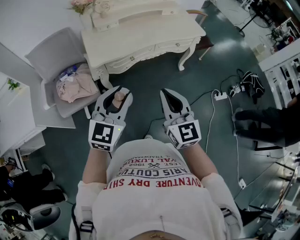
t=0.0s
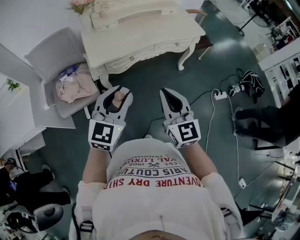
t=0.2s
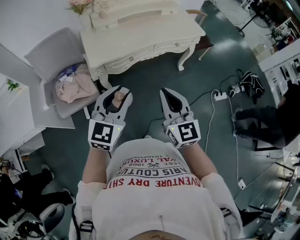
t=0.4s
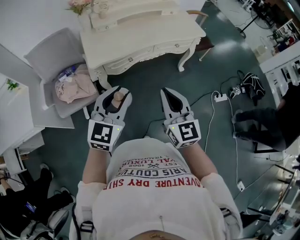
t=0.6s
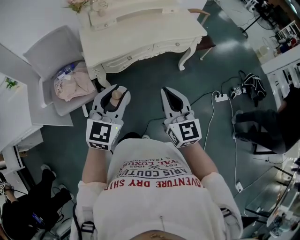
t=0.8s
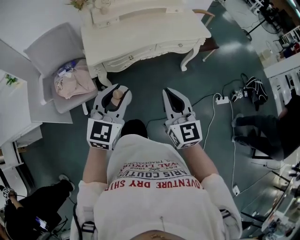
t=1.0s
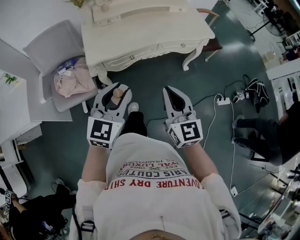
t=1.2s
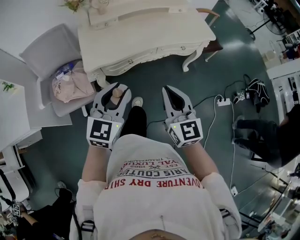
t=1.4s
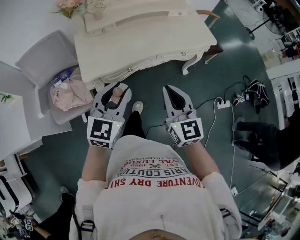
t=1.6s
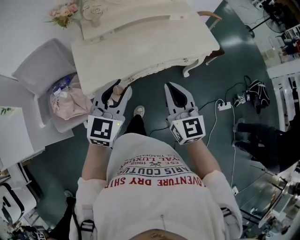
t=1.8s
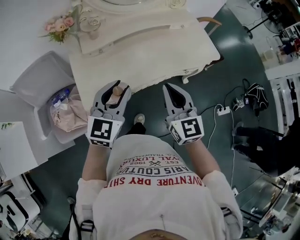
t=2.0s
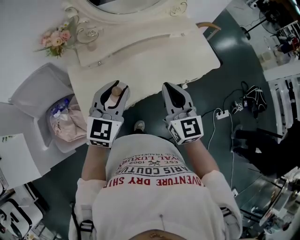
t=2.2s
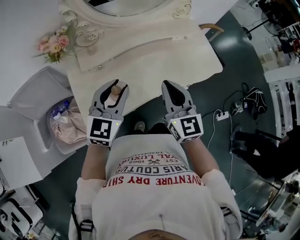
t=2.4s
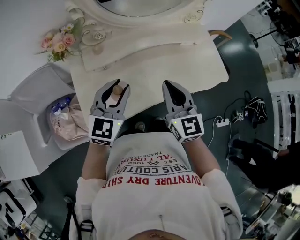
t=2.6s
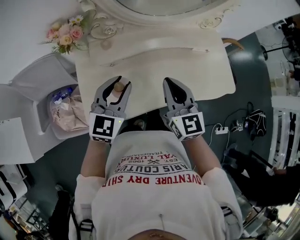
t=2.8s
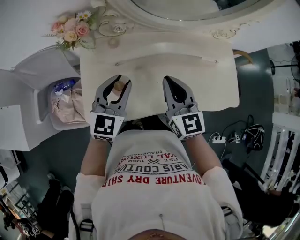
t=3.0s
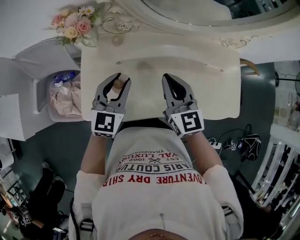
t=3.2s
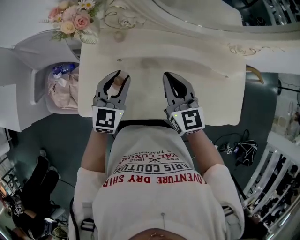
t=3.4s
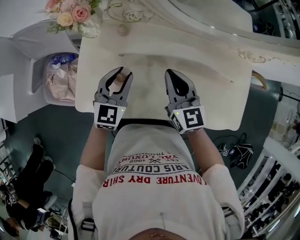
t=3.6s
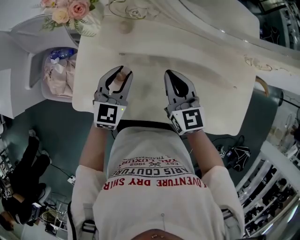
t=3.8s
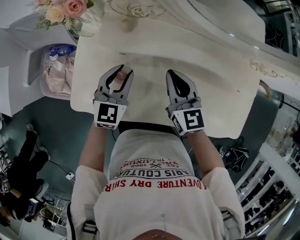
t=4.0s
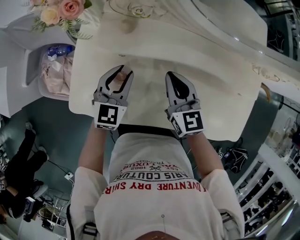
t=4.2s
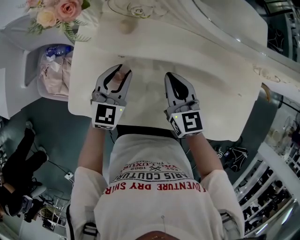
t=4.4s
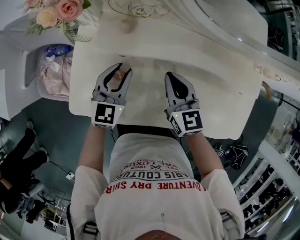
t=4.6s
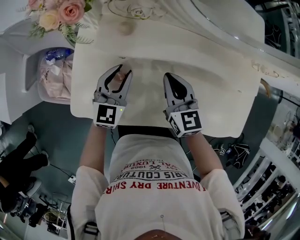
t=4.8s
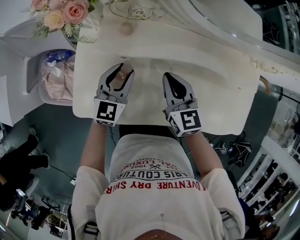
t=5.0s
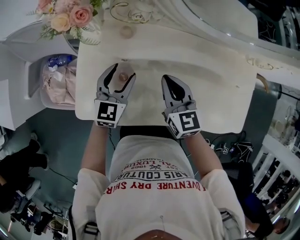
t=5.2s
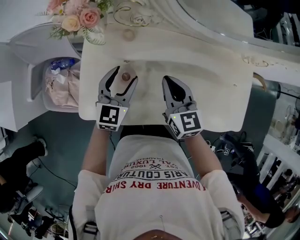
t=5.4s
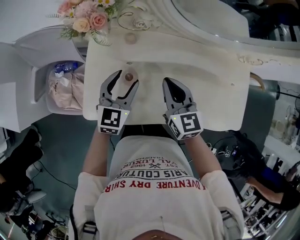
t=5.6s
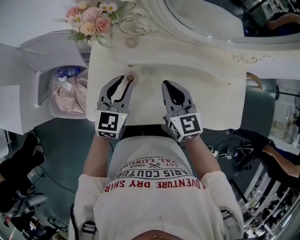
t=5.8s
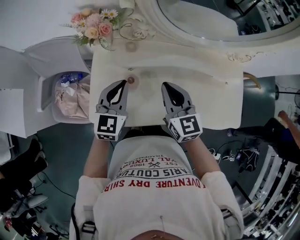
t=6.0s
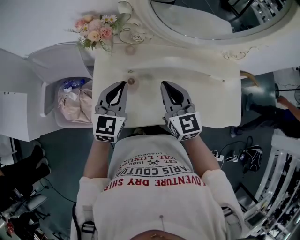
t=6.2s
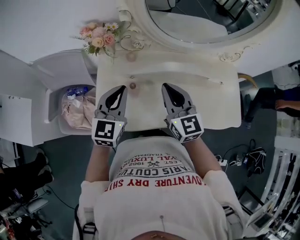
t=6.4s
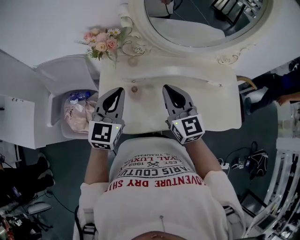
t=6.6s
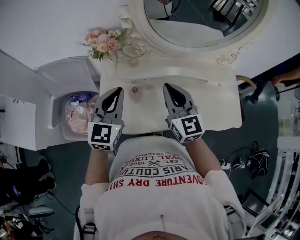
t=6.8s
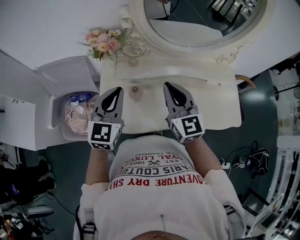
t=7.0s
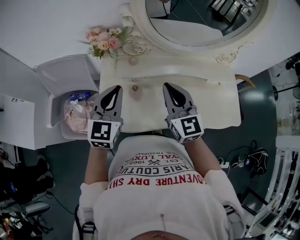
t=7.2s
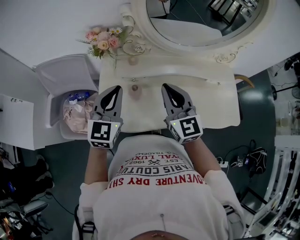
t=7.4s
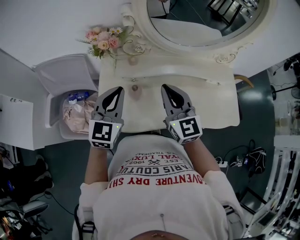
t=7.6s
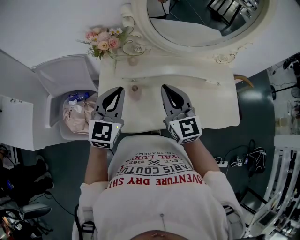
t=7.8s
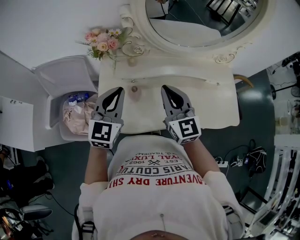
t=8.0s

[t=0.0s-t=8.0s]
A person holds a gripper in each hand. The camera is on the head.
t=0.0s to t=1.6s: The grippers both shift forward by approximately 20 cm.
t=1.6s to t=3.2s: The pair of grippers is taken some 40 cm. The right gripper rotates roughly 20 degrees. Meanwhile the left gripper swivels roughly 20 degrees.
t=3.2s to t=4.8s: The right gripper is displaced downward and forward by roughly 15 cm; the left gripper goes some 15 cm downward.
t=4.8s to t=6.4s: Both grippers move upward and backward, roughly 20 cm. The left gripper closes its fingers.
t=6.4s to t=8.0s: There are only small adjustments of the grippers.

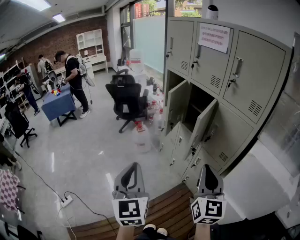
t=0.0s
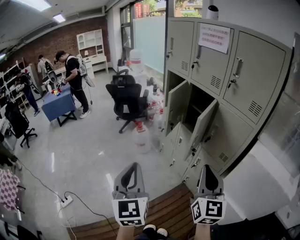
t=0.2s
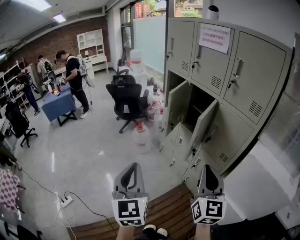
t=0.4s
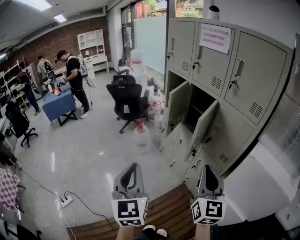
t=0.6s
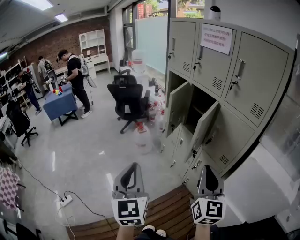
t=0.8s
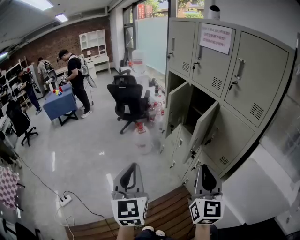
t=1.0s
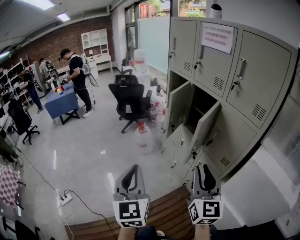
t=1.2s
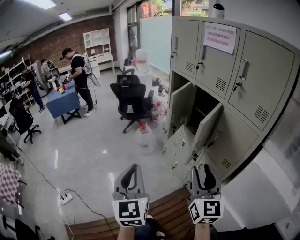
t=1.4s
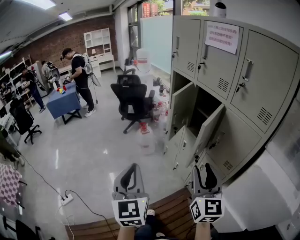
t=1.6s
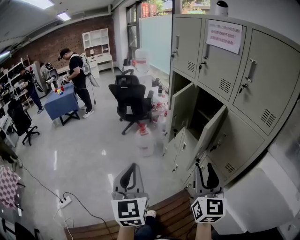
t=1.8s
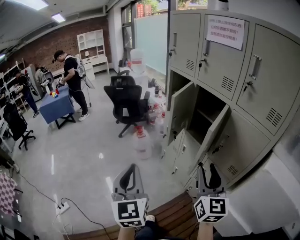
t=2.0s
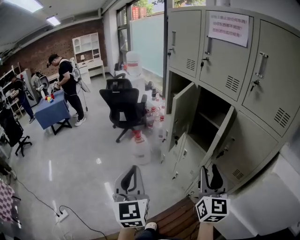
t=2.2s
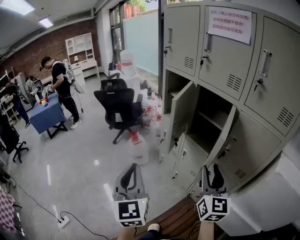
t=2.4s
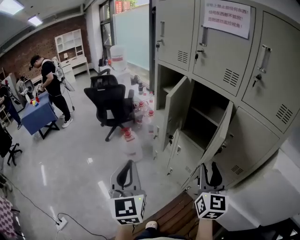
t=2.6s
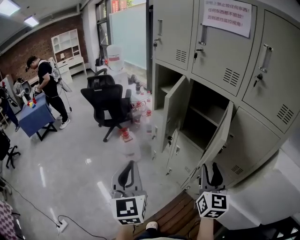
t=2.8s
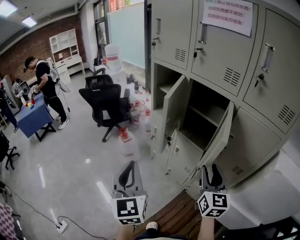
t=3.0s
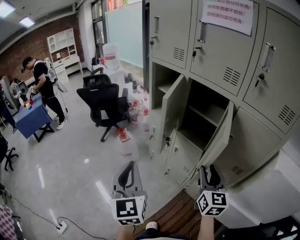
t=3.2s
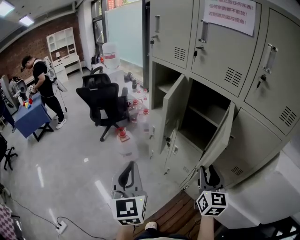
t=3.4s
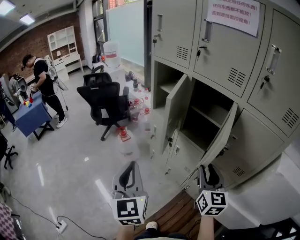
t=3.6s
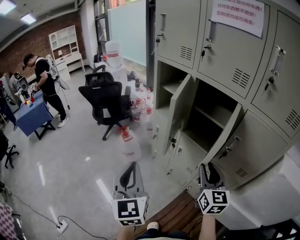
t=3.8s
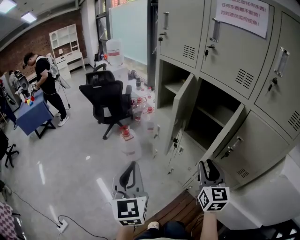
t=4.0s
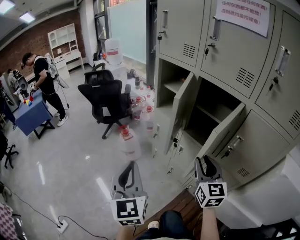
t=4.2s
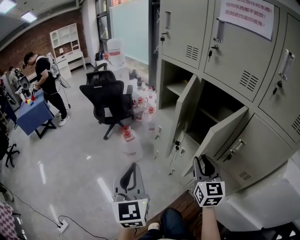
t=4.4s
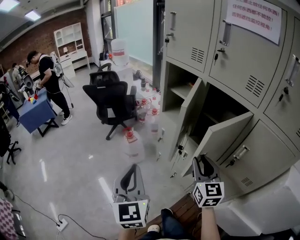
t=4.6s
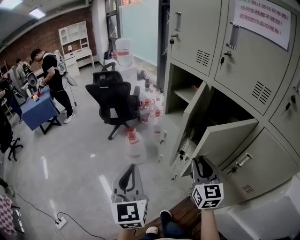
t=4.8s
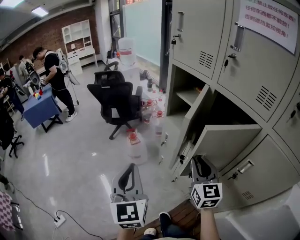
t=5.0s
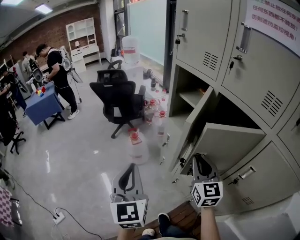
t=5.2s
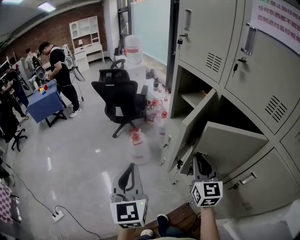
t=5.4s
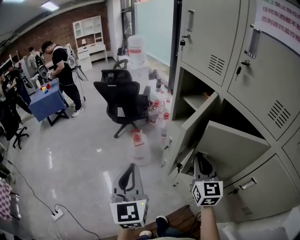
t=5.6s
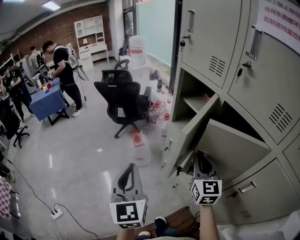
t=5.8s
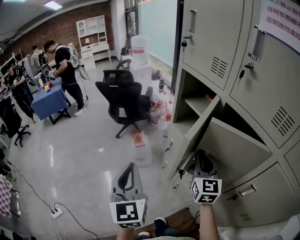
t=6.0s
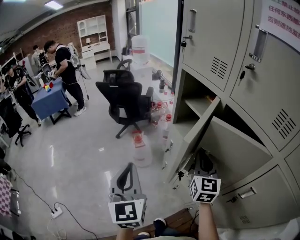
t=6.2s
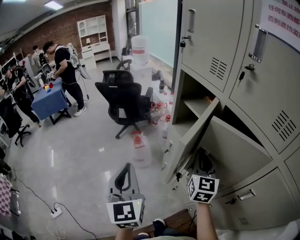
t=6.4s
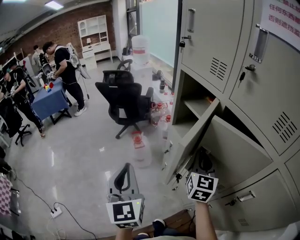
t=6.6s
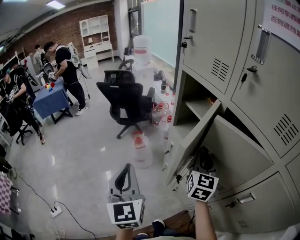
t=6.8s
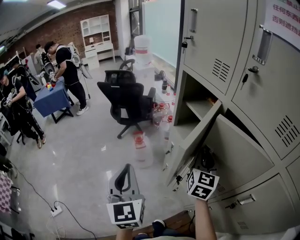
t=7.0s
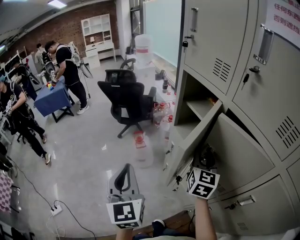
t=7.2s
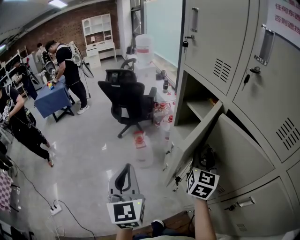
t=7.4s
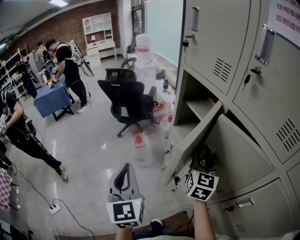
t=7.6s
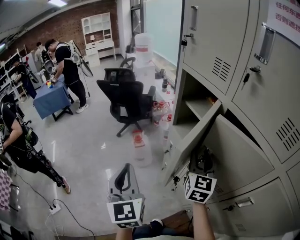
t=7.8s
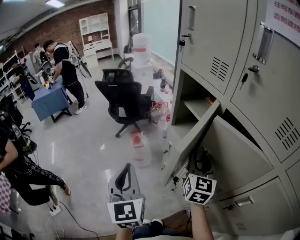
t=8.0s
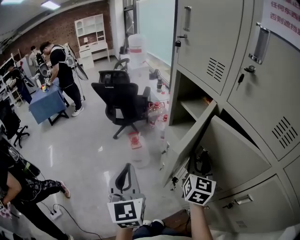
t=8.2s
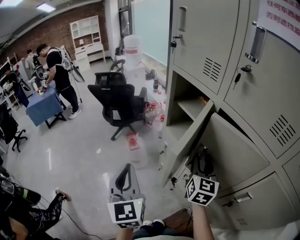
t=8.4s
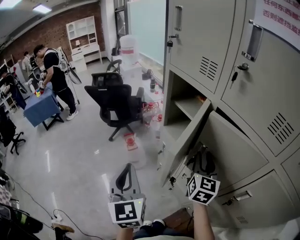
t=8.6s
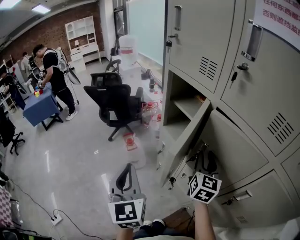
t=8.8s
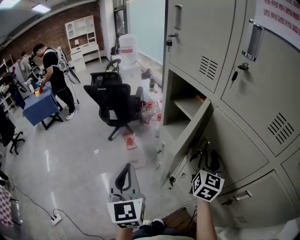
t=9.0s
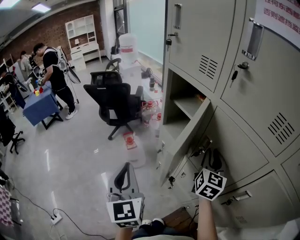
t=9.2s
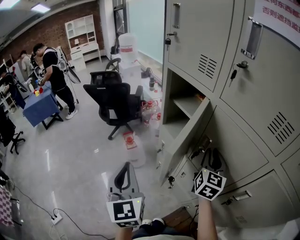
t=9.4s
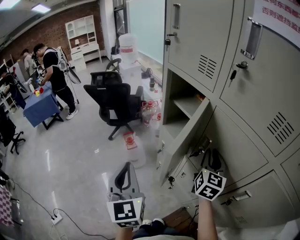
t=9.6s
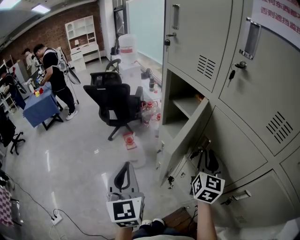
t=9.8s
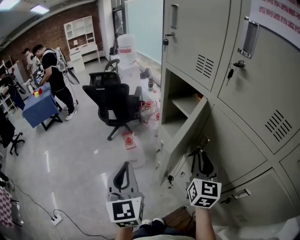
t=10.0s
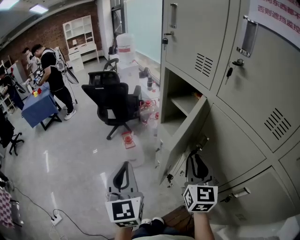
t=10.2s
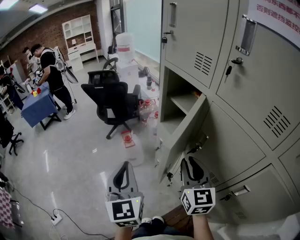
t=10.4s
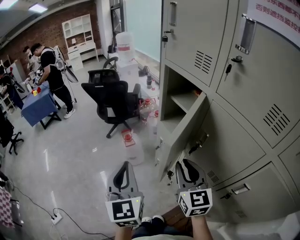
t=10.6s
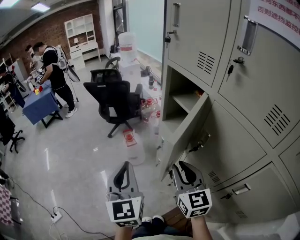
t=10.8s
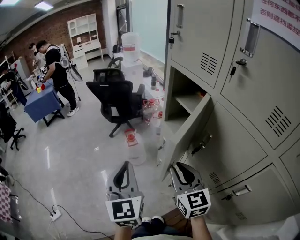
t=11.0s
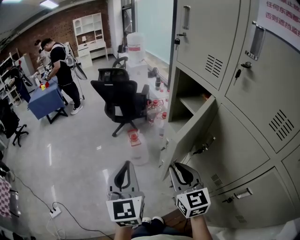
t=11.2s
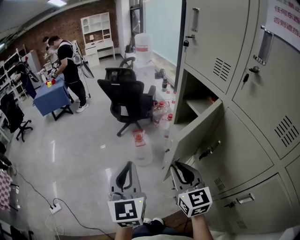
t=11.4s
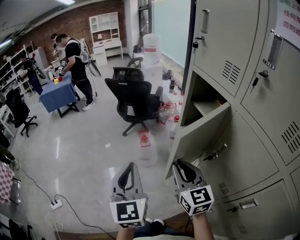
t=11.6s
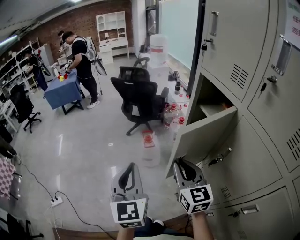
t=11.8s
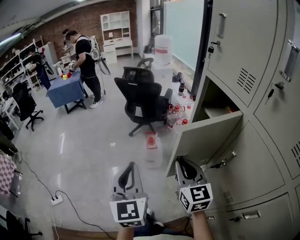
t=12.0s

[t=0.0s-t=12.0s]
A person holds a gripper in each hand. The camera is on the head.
t=0.0s to t=1.6s: The right gripper travels forward by about 5 cm, and opens its fingers.
t=1.6s to t=3.0s: The right gripper goes approximately 25 cm forward and downward; the left gripper is displaced forward by approximately 25 cm.
t=3.0s to t=4.4s: The left gripper changes place by approximately 5 cm. The right gripper heads forward and to the left, covering some 10 cm.
t=4.4s to t=6.0s: The right gripper shifts about 20 cm forward, while the left gripper shifts about 10 cm forward.
t=6.0s to t=7.6s: The right gripper heads forward, covering approximately 5 cm, and opens up.
t=7.6s to t=9.0s: The right gripper moves to the right, about 5 cm.
t=9.0s to t=10.4s: The right gripper heads to the left and backward, covering roughly 10 cm, and turns by some 20 degrees.
t=10.4s to t=12.0s: The left gripper moves to the left, about 5 cm. The right gripper goes approximately 15 cm to the left and forward, and turns by roughly 20 degrees.

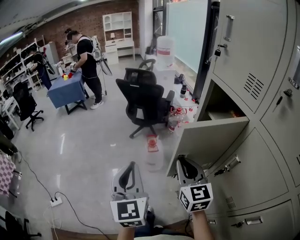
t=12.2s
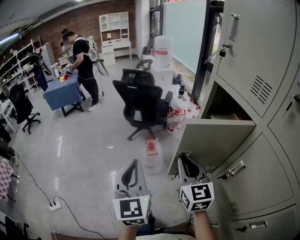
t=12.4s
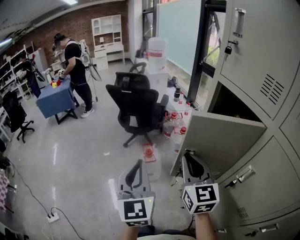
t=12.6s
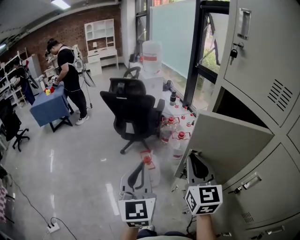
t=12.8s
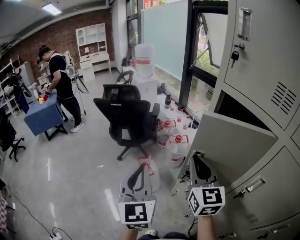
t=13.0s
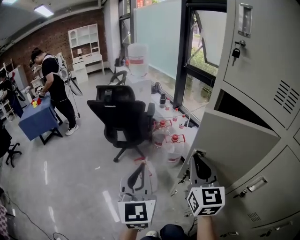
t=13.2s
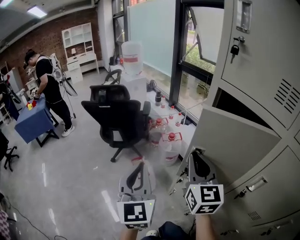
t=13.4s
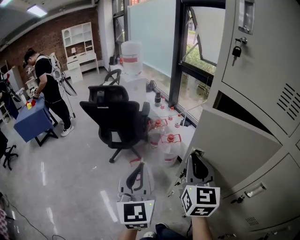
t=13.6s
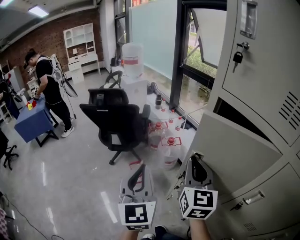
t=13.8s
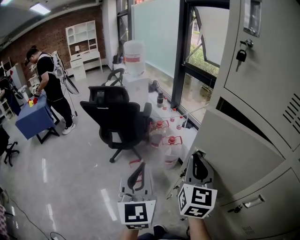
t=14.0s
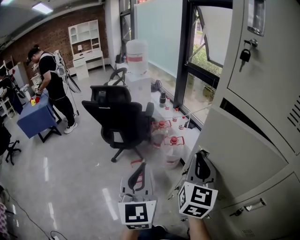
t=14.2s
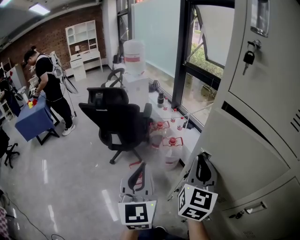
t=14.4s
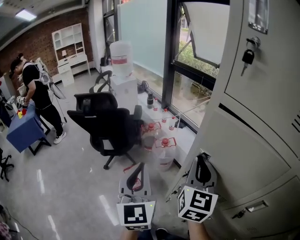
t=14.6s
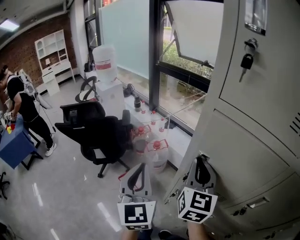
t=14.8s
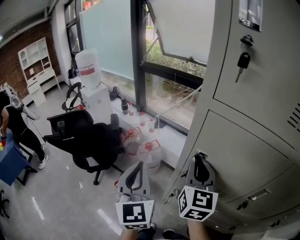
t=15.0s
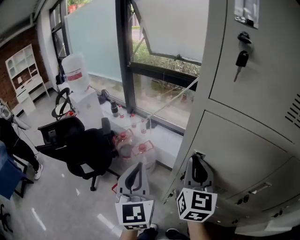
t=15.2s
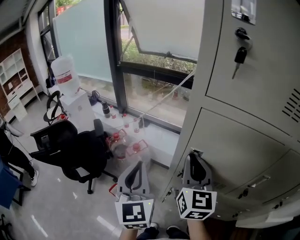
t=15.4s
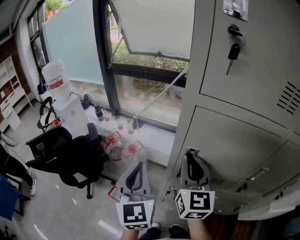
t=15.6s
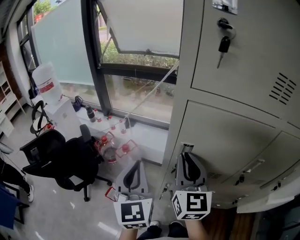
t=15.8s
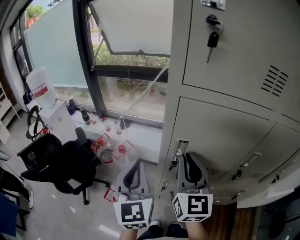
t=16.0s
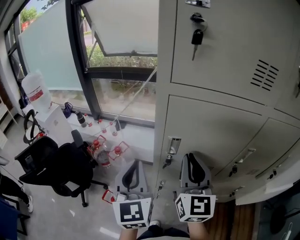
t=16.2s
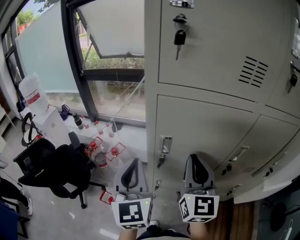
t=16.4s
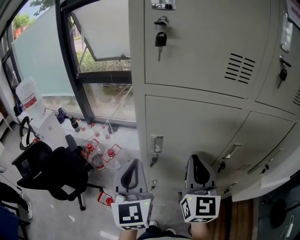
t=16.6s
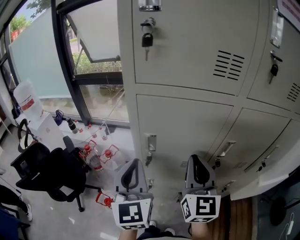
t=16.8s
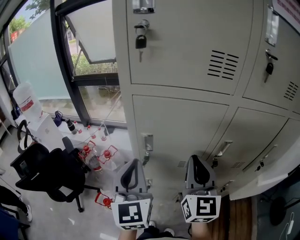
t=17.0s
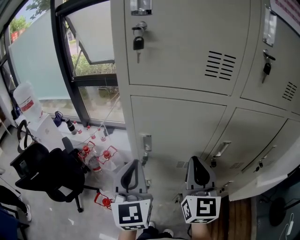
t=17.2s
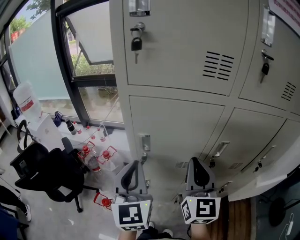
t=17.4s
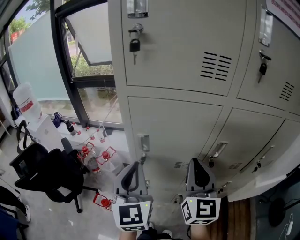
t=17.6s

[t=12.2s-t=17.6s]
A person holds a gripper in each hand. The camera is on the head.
t=12.2s to t=13.6s: The right gripper moves approximately 20 cm, and changes its angle by roughly 30 degrees; the left gripper changes place by about 25 cm, and turns by about 20 degrees.
t=13.6s to t=15.0s: The left gripper shifts some 15 cm forward, while the right gripper travels forward and to the right by some 10 cm, and turns by approximately 30 degrees.
t=15.0s to t=16.2s: The right gripper moves backward, some 5 cm; the left gripper moves to the right, roughly 5 cm, and turns by about 20 degrees.
t=16.2s to t=17.6s: Both grippers travel together to the right, about 10 cm.
